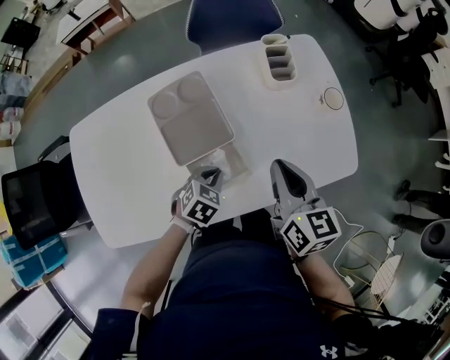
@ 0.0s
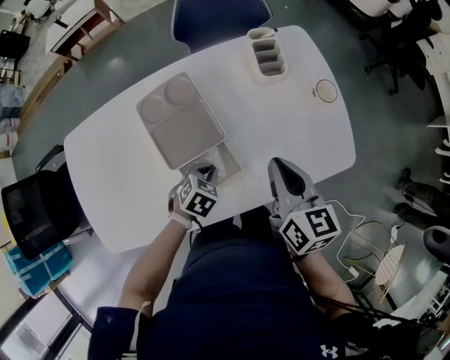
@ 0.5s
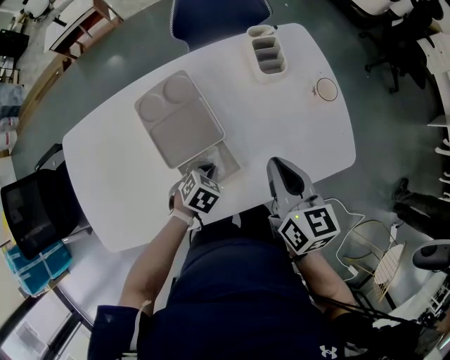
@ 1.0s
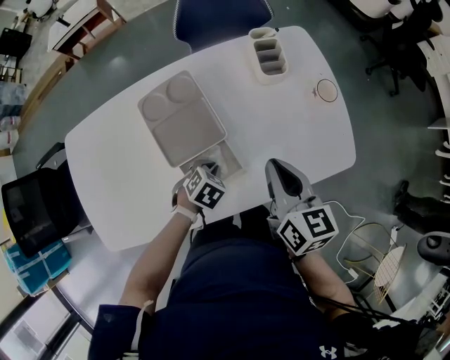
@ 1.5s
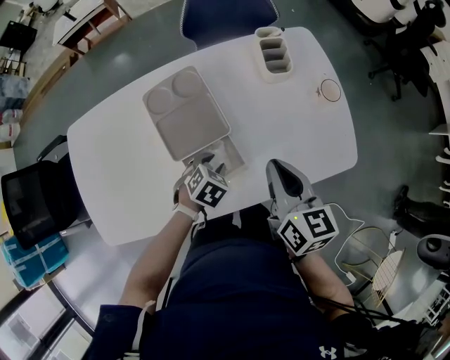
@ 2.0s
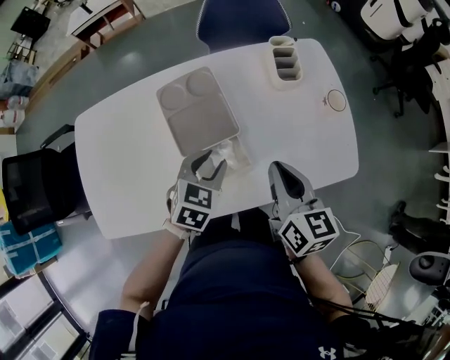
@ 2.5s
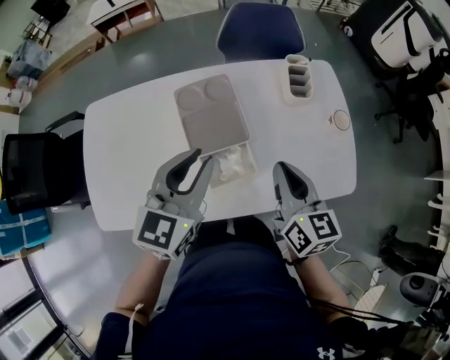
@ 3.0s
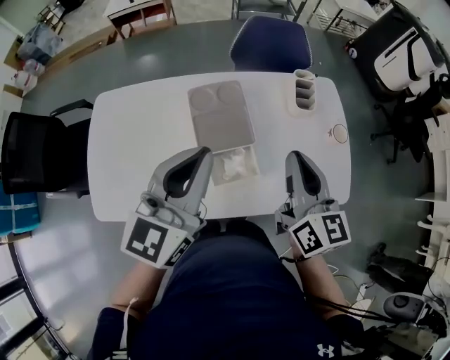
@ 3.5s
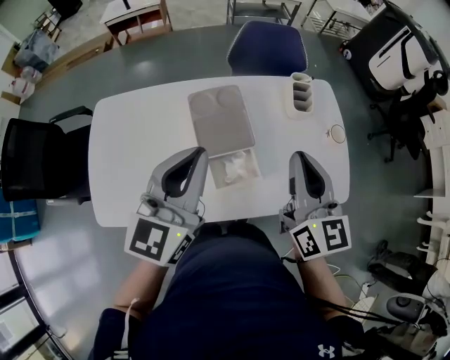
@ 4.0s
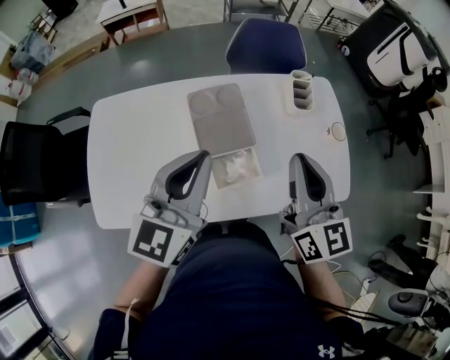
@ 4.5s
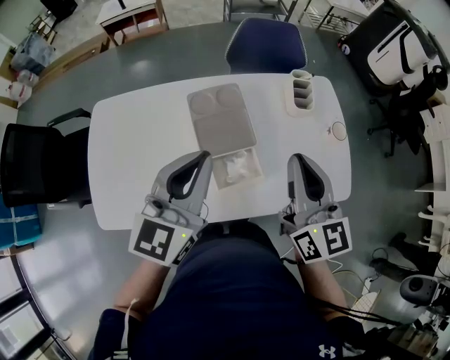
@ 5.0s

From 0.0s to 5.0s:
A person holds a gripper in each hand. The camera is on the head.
From 0.0s to 2.5s: The left gripper is displaced upward by approximately 10 cm, and opens its fingers.
From 2.5s to 5.0s: The left gripper shifts some 25 cm upward, tilts its fingers approximately 40 degrees upward, and closes, while the right gripper travels upward by about 15 cm, and swivels some 20 degrees.

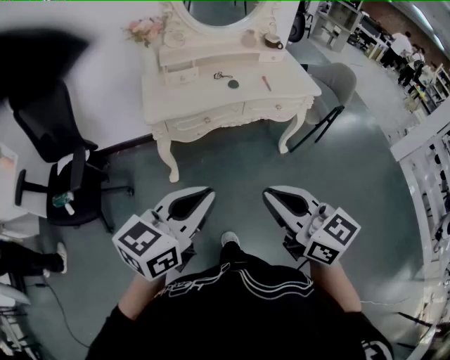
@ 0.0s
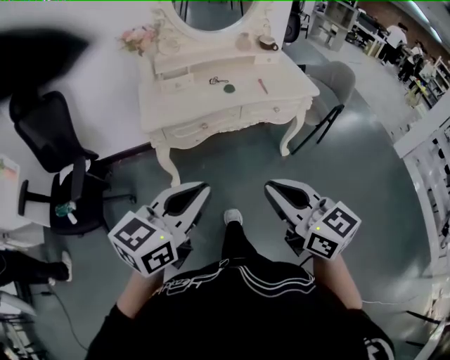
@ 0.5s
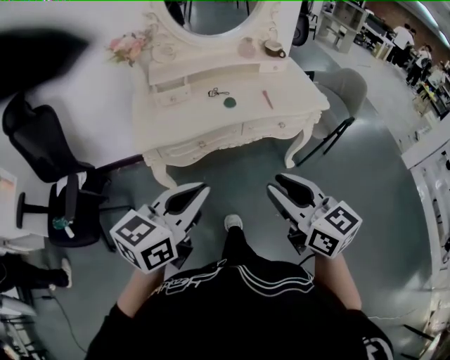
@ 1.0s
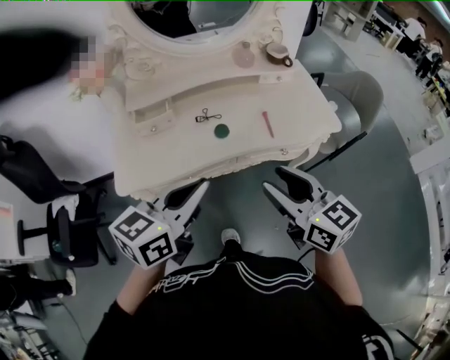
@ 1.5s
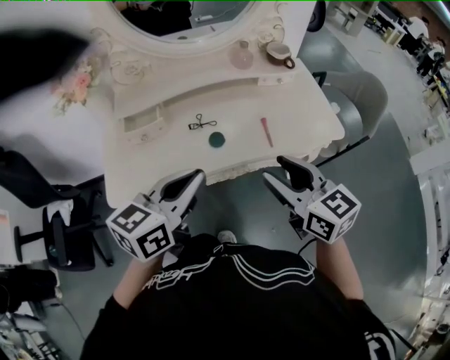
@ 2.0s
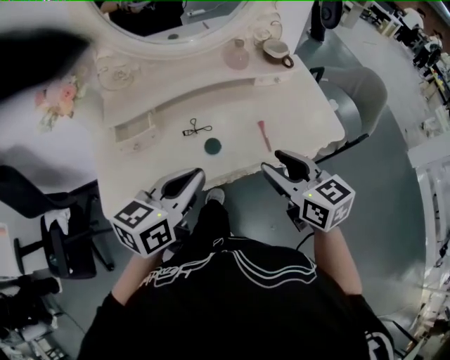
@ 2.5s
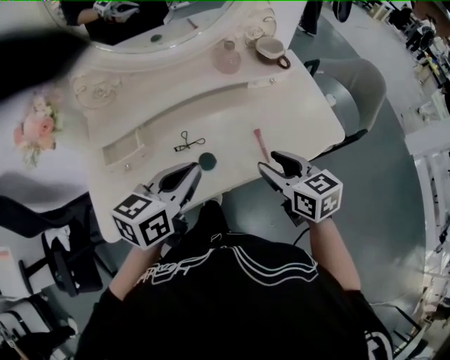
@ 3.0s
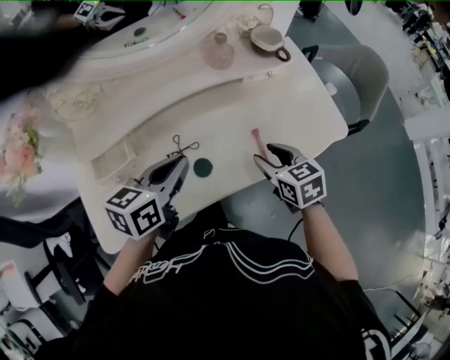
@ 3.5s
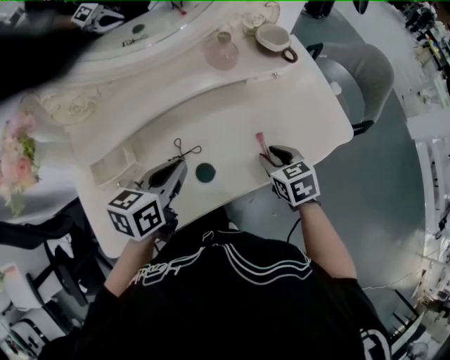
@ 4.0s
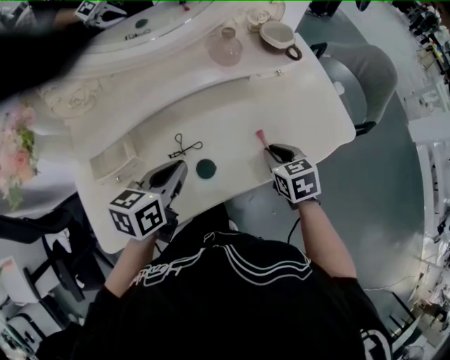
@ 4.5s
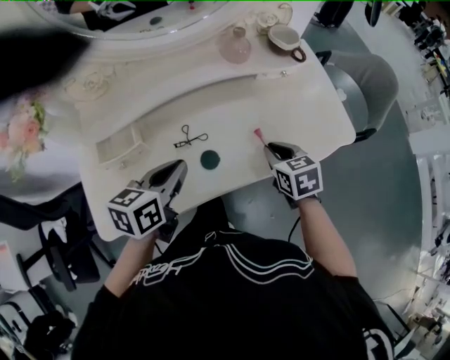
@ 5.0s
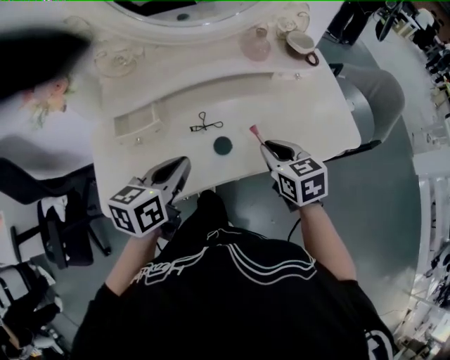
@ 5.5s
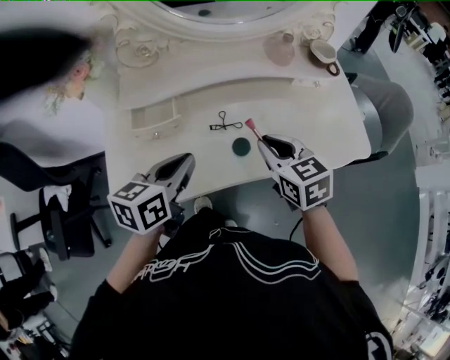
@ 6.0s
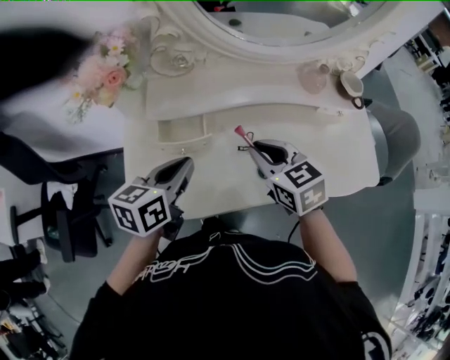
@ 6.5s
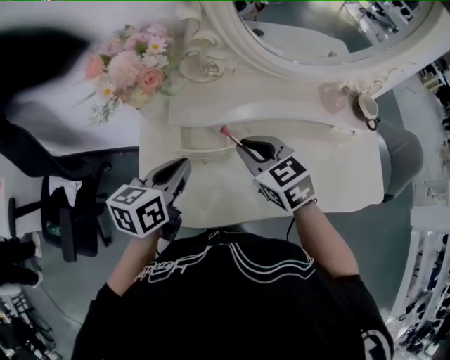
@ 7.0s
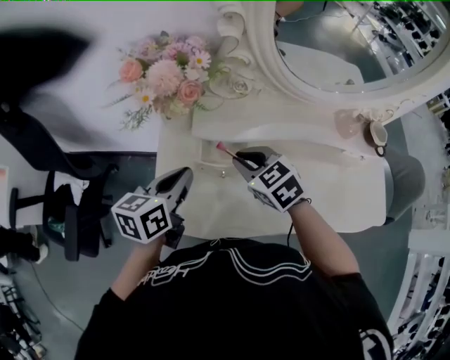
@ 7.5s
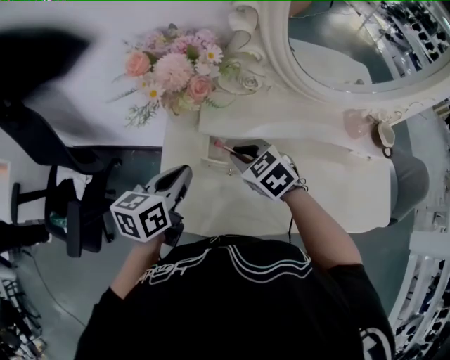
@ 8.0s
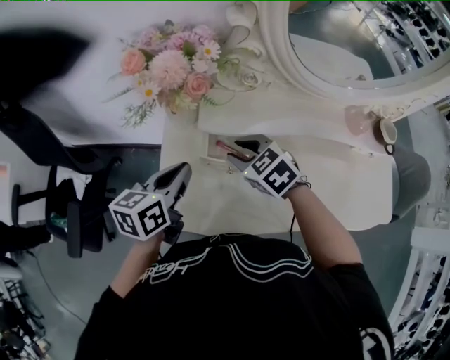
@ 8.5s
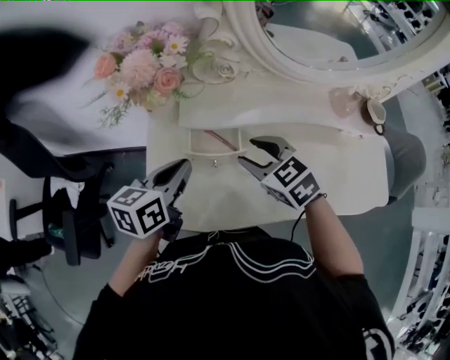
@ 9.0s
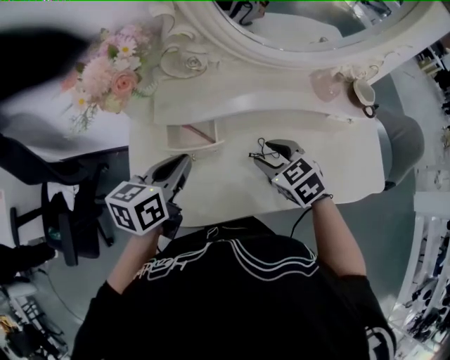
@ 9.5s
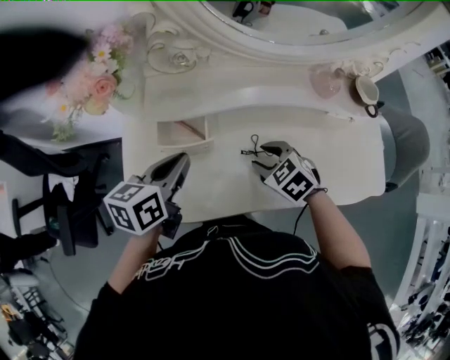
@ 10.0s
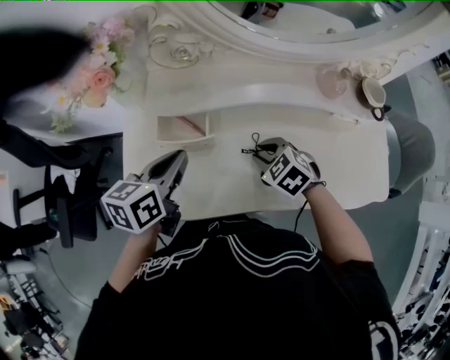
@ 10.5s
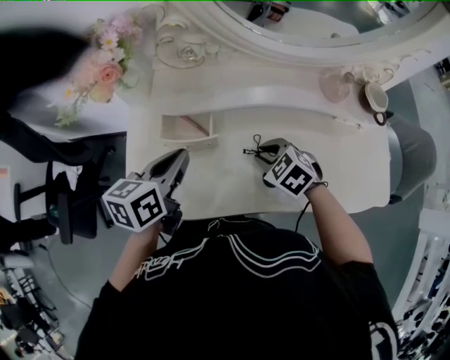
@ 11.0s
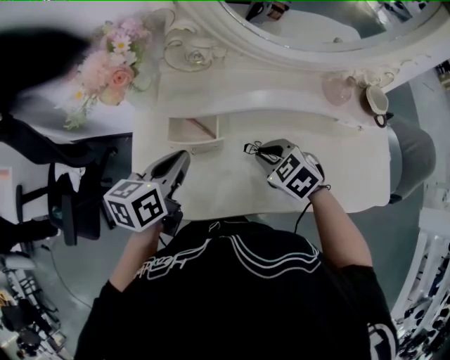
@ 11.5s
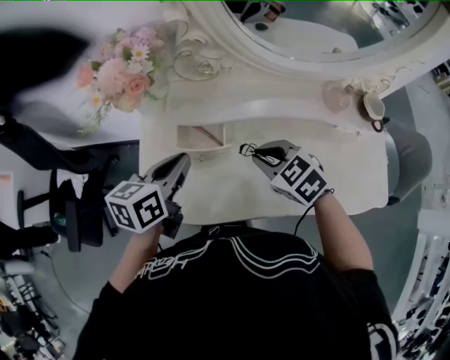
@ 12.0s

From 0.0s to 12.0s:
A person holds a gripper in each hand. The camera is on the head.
From 0.0s to 2.0s: The pair of grippers is taken forward, some 50 cm. The right gripper opens its fingers.
From 2.0s to 4.0s: The left gripper shifts some 25 cm forward and downward. Meanwhile the right gripper moves downward and forward, approximately 30 cm, and angles its fingers downward, by some 30 degrees.
From 4.0s to 6.0s: The right gripper is displaced to the left and upward by approximately 20 cm, and turns by roughly 20 degrees. Meanwhile the left gripper travels backward and to the left by some 15 cm.
From 6.0s to 8.0s: The two grippers go some 30 cm to the left and forward. The right gripper changes its angle by approximately 40 degrees.
From 8.0s to 10.0s: The right gripper goes some 20 cm to the right and backward, and opens its fingers, while the left gripper goes about 15 cm to the right.
From 10.0s to 12.0s: The left gripper changes place by approximately 5 cm; the right gripper is displaced upward and to the left by some 10 cm, and closes.

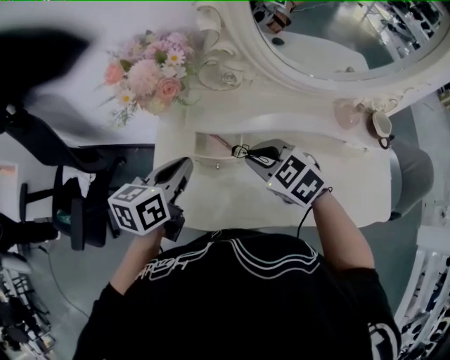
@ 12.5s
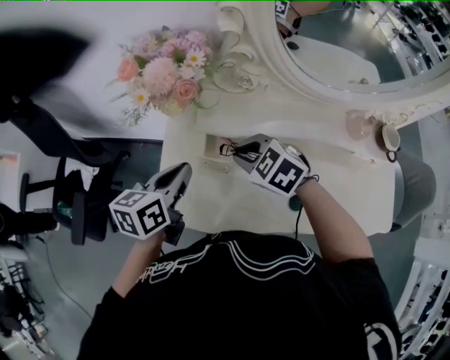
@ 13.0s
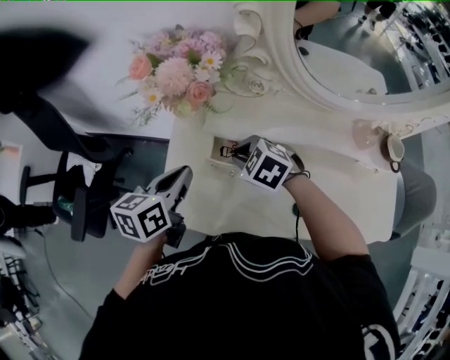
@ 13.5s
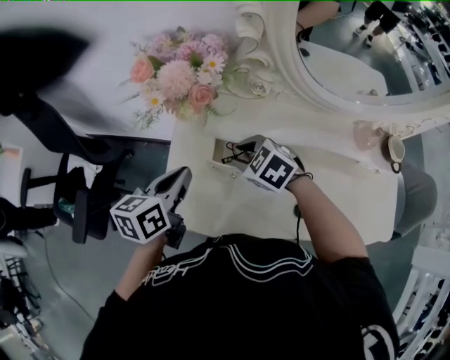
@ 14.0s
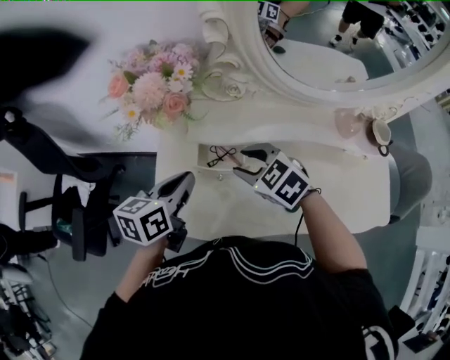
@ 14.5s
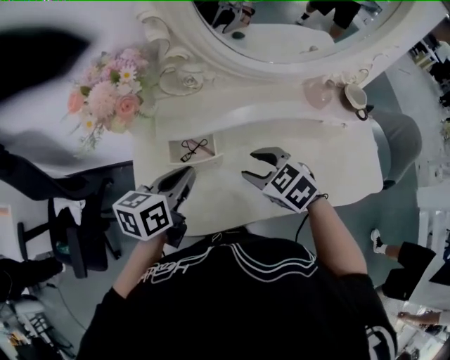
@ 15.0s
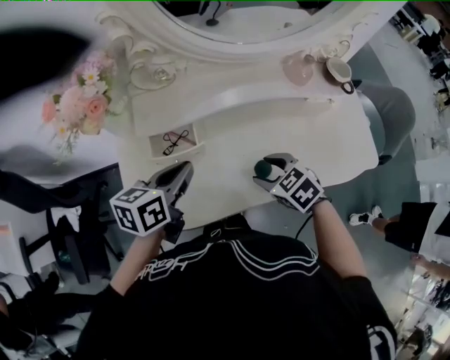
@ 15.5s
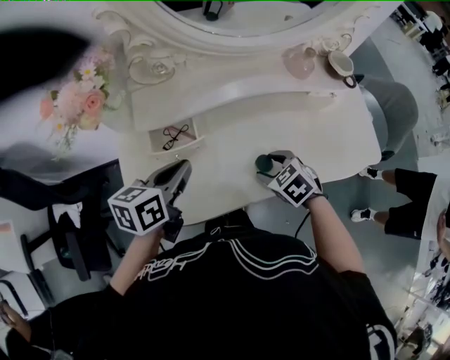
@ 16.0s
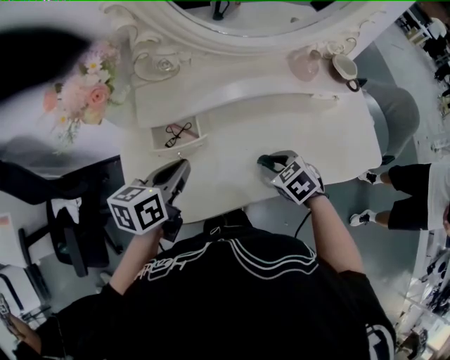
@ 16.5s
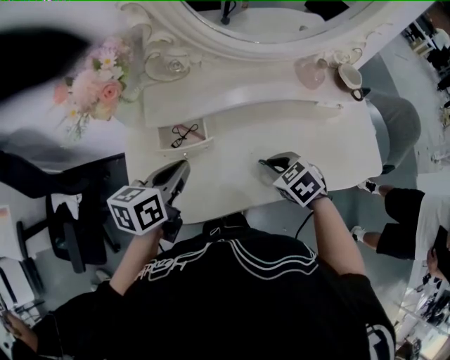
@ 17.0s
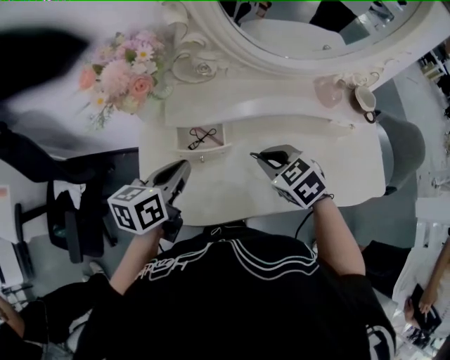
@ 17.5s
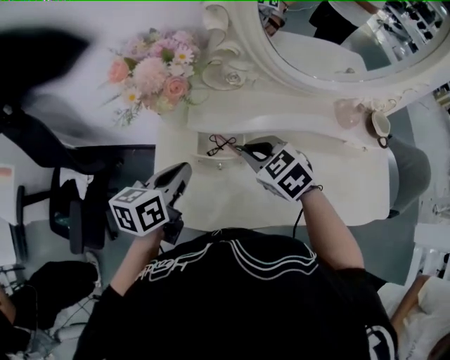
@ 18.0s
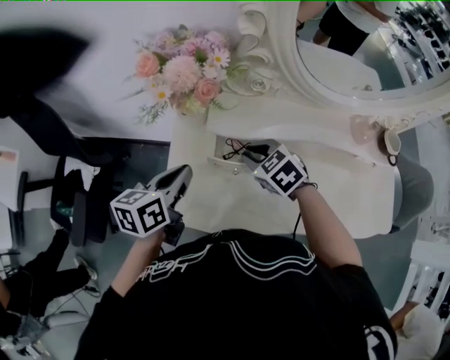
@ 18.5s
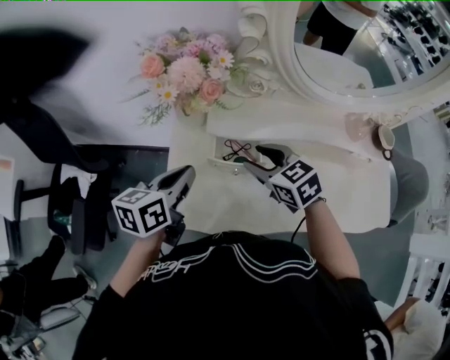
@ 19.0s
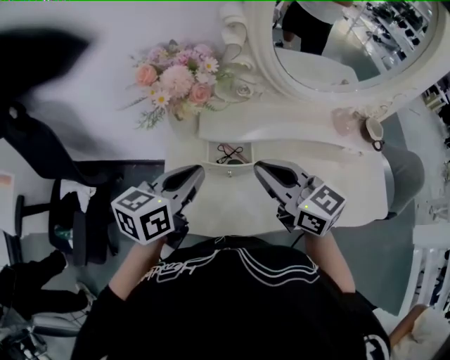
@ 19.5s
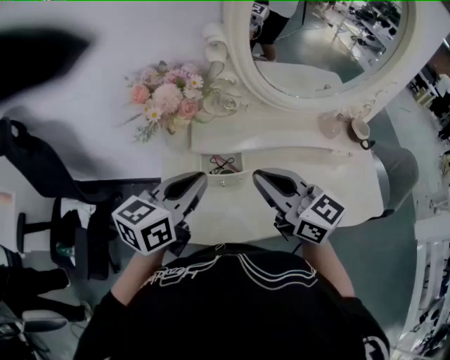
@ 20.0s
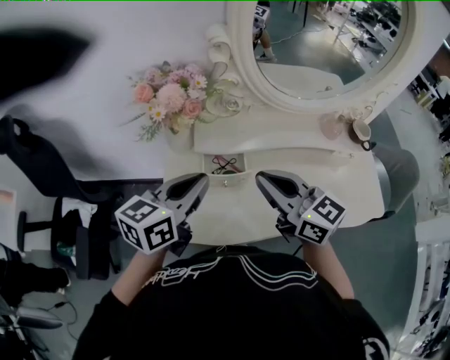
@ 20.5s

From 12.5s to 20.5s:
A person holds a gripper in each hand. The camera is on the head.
From 12.5s to 14.5s: The right gripper opens its fingers.
From 14.5s to 16.5s: The right gripper shifts some 25 cm to the right, downward and backward, and turns by about 30 degrees. Meanwhile the left gripper is displaced to the right by about 10 cm.
From 16.5s to 18.5s: The right gripper is displaced to the left and forward by some 25 cm, and swivels roughly 20 degrees, while the left gripper travels to the left by approximately 15 cm.
From 18.5s to 20.5s: The left gripper moves upward and to the right, about 10 cm, and changes its angle by approximately 30 degrees. The right gripper travels upward and backward by roughly 20 cm, tilts its fingers roughly 50 degrees upward, and opens, then closes once more.

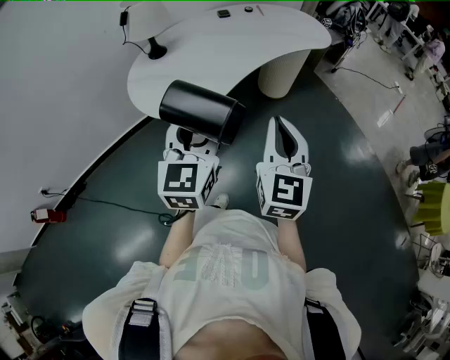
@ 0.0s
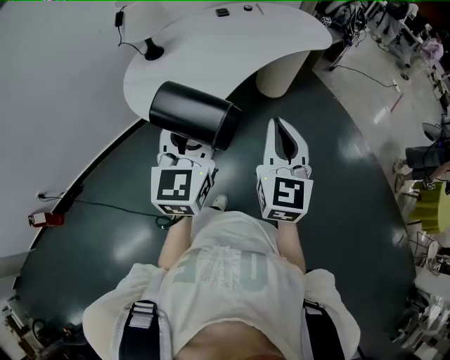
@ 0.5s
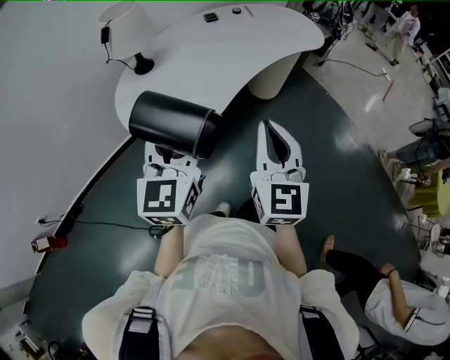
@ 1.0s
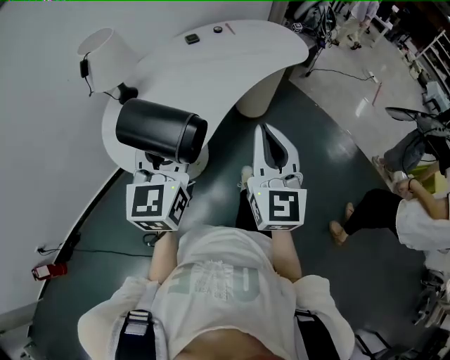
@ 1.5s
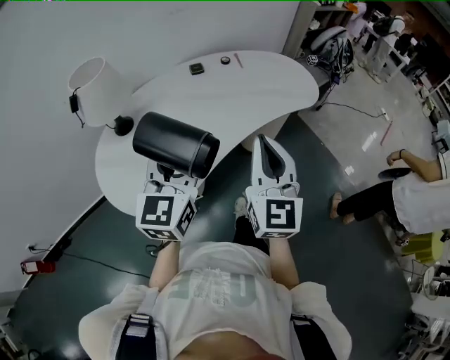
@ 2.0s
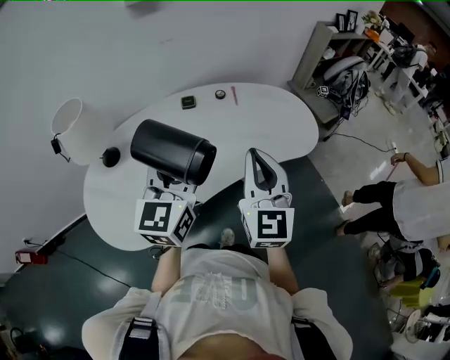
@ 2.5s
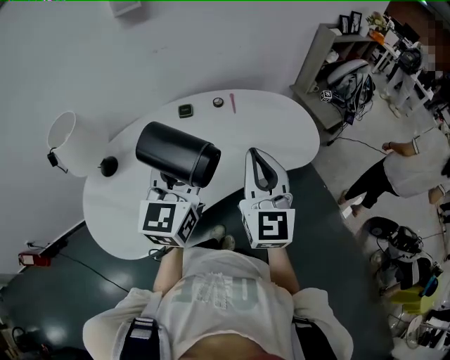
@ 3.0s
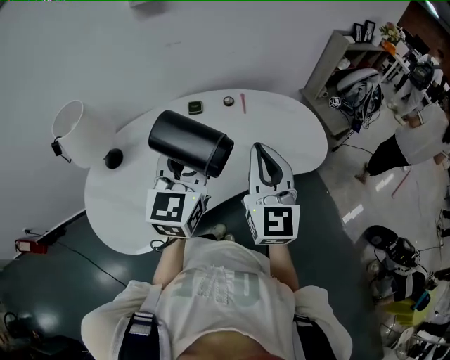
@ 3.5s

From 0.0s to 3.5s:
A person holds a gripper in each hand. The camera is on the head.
From 0.0s to 2.0s: The grippers both shift forward by approximately 30 cm.
From 2.0s to 3.5s: The left gripper moves forward and to the right, some 25 cm. The right gripper heads forward, covering roughly 25 cm.
